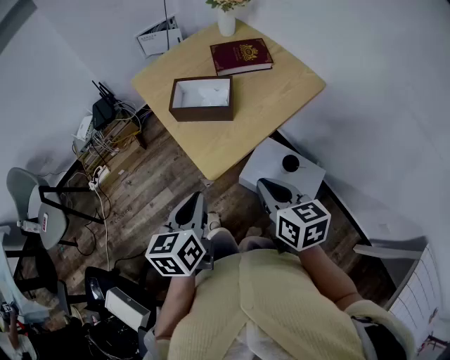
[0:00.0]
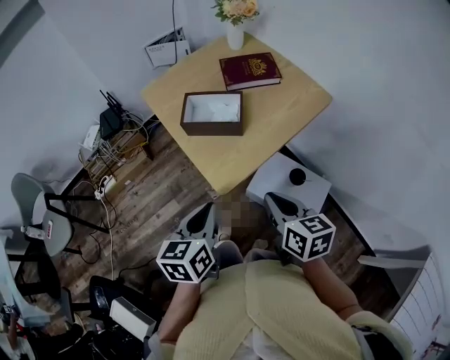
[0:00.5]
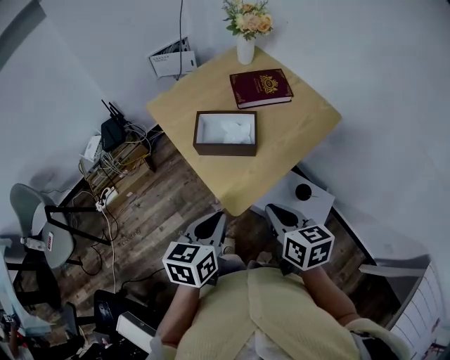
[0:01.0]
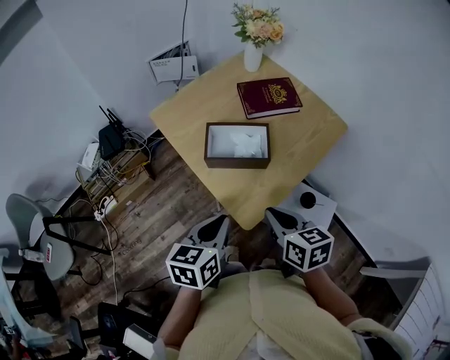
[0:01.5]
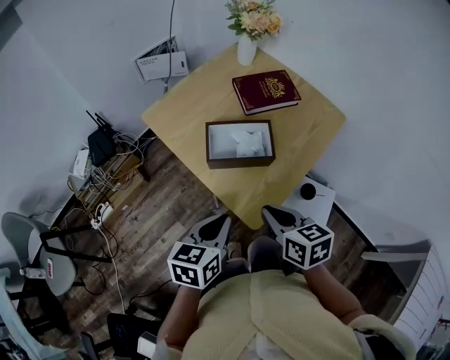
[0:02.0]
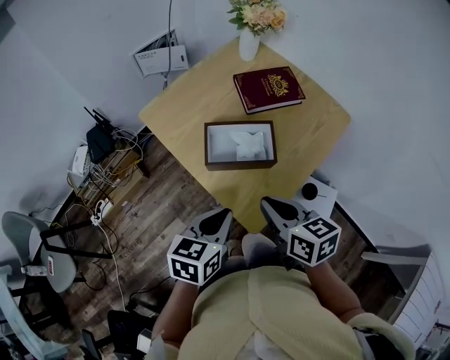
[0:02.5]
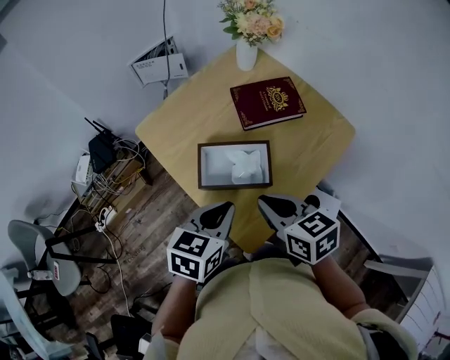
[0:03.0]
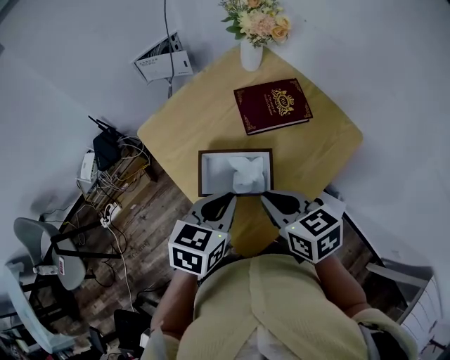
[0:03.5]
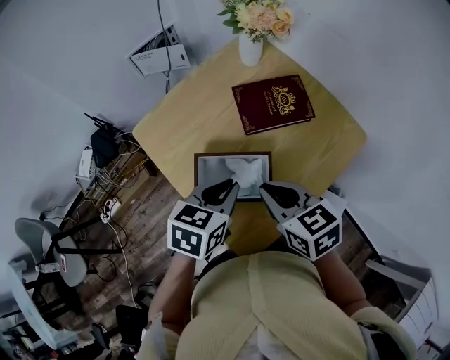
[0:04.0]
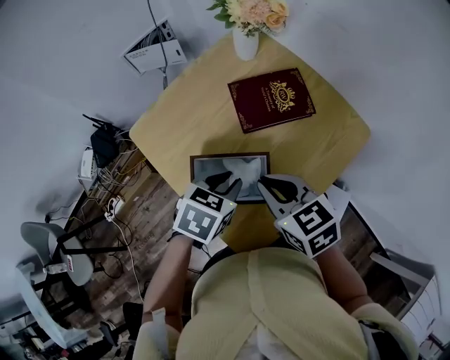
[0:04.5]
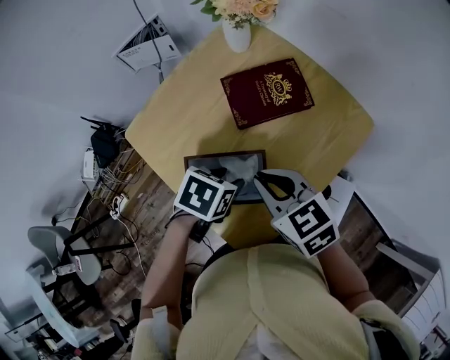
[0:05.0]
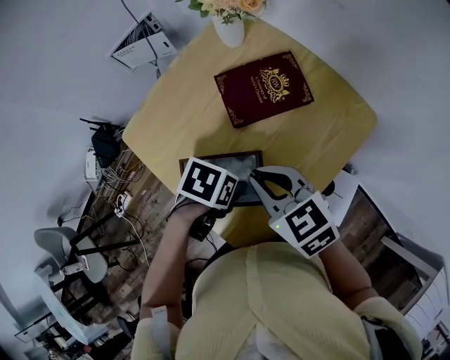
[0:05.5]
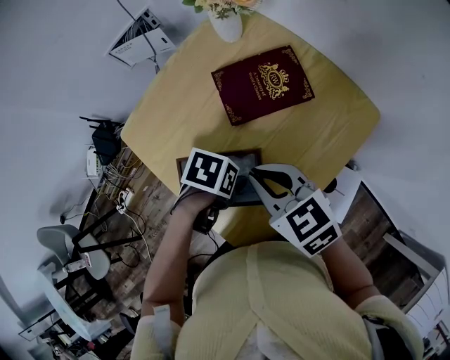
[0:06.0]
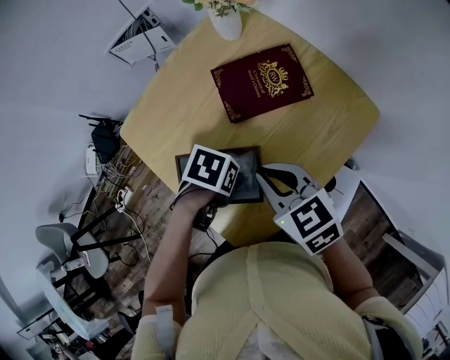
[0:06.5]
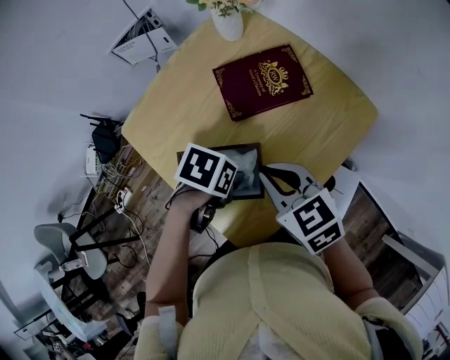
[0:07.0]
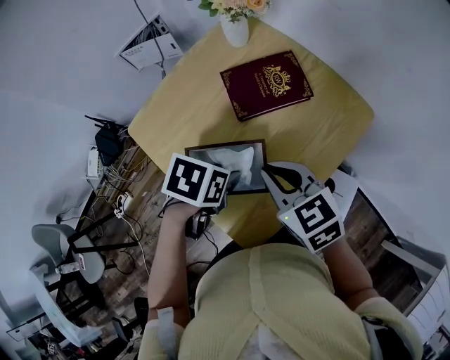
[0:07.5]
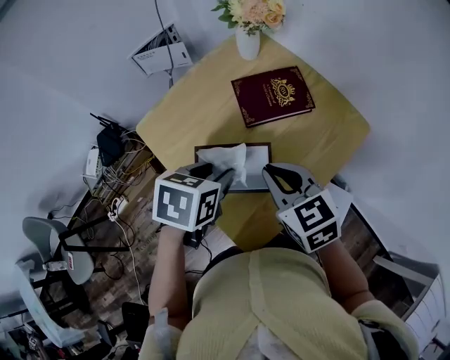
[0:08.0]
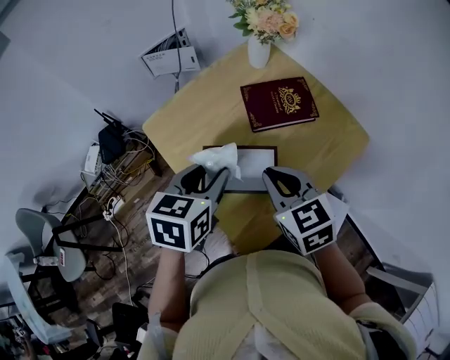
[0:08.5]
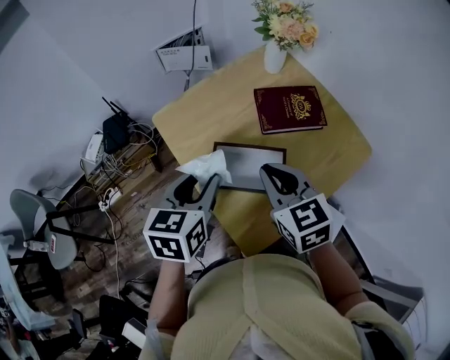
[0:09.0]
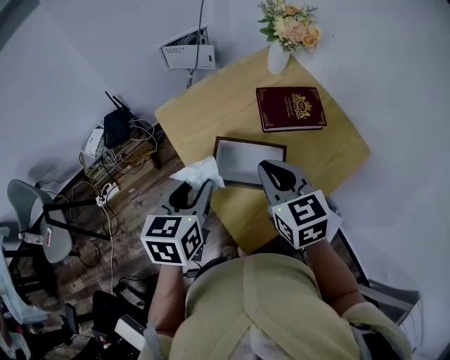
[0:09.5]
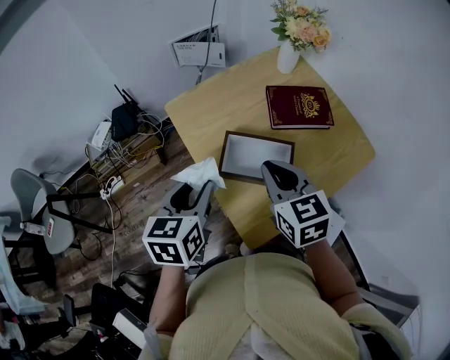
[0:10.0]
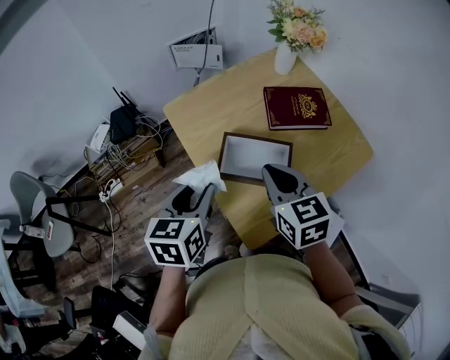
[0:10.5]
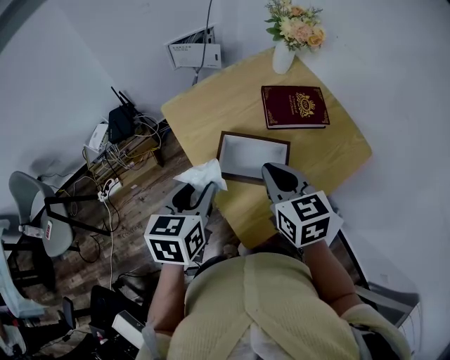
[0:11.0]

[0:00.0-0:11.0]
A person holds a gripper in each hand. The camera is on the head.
0:00.0 to 0:02.0: The right gripper shifts some 15 cm to the left and forward, while the left gripper goes roughly 15 cm forward and to the left, and turns by roughly 30 degrees.
0:02.0 to 0:03.5: The two grippers go some 15 cm forward.
0:03.5 to 0:05.5: The left gripper moves downward, some 10 cm, angles its fingers downward, by approximately 30 degrees, and opens its fingers, while the right gripper moves about 5 cm.
0:05.5 to 0:07.5: The grippers move only a little.
0:07.5 to 0:09.0: The left gripper heads to the left and upward, covering approximately 15 cm, and tilts its fingers roughly 30 degrees upward, while the right gripper moves to the left, some 5 cm.
0:09.0 to 0:11.0: The left gripper shifts by approximately 5 cm.

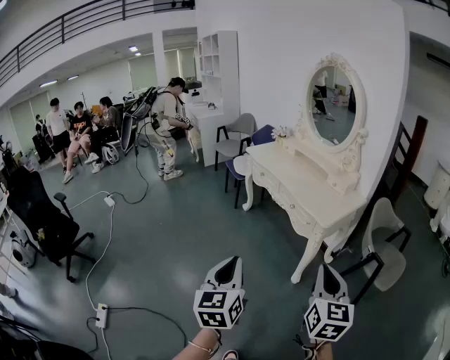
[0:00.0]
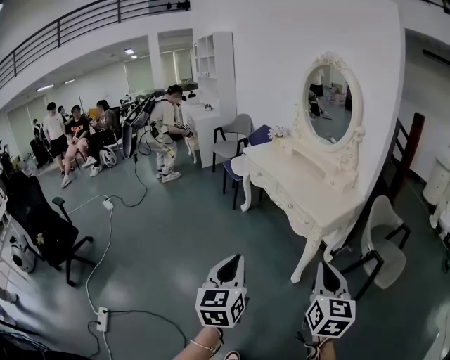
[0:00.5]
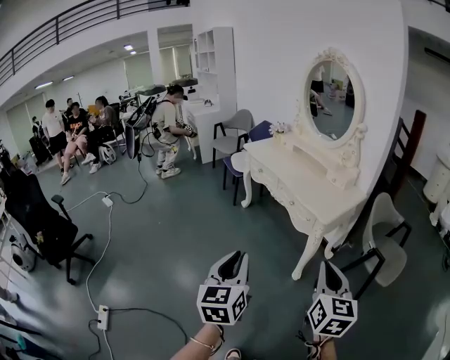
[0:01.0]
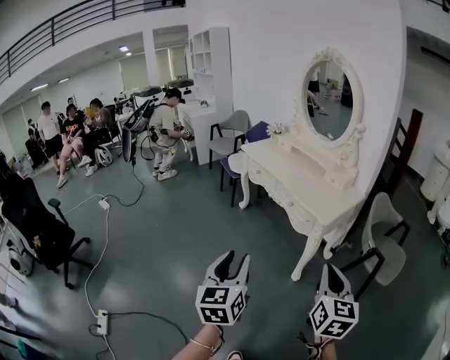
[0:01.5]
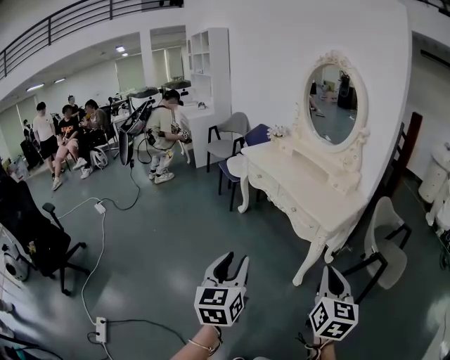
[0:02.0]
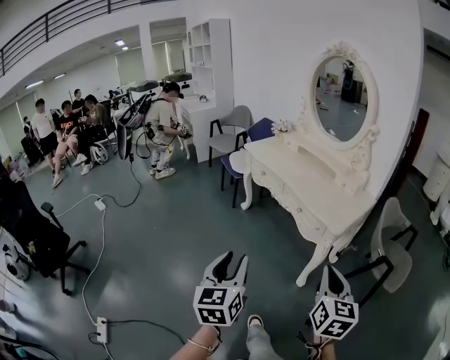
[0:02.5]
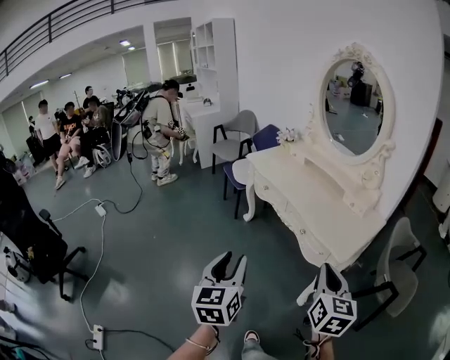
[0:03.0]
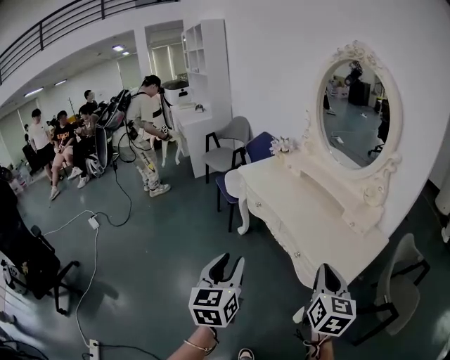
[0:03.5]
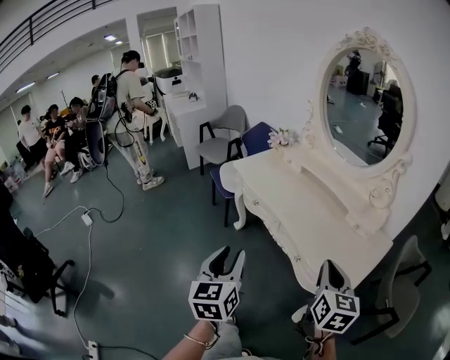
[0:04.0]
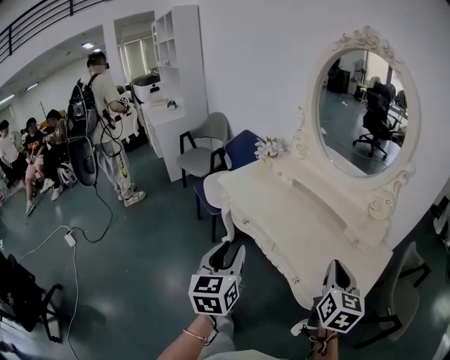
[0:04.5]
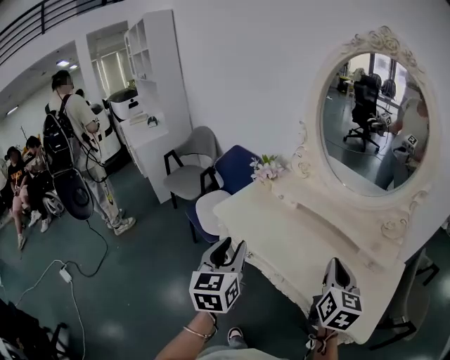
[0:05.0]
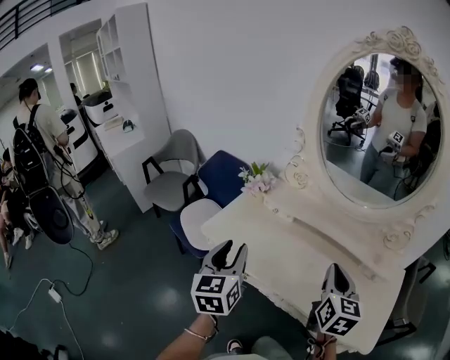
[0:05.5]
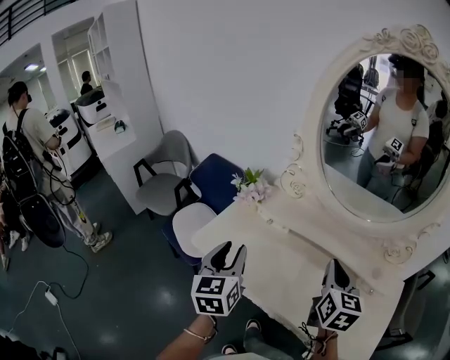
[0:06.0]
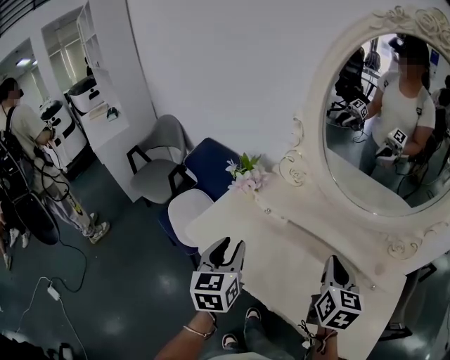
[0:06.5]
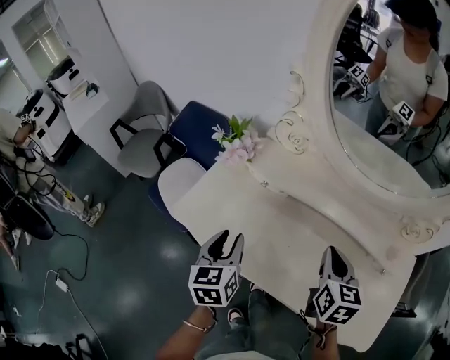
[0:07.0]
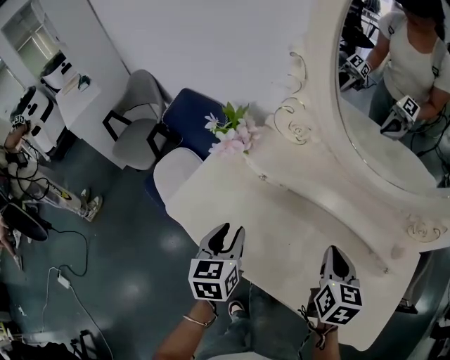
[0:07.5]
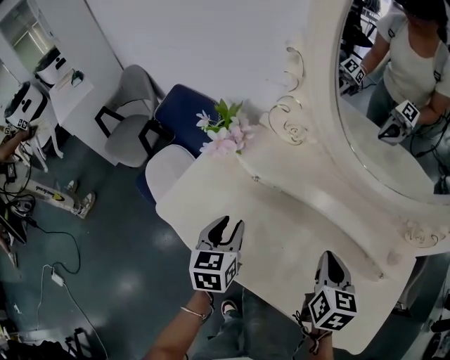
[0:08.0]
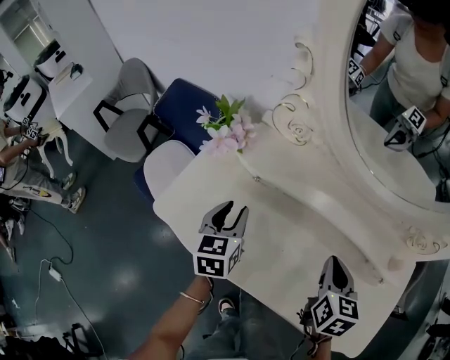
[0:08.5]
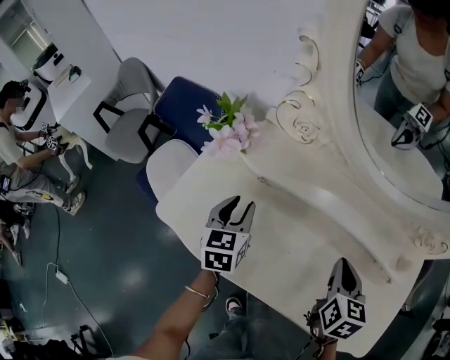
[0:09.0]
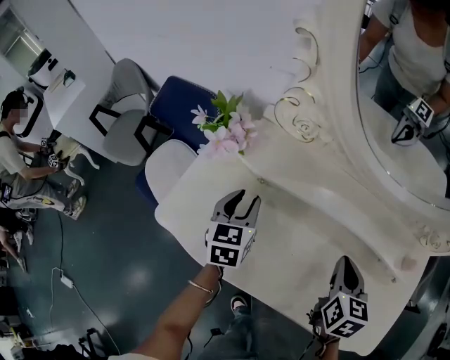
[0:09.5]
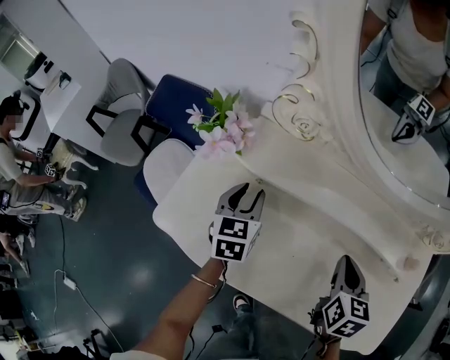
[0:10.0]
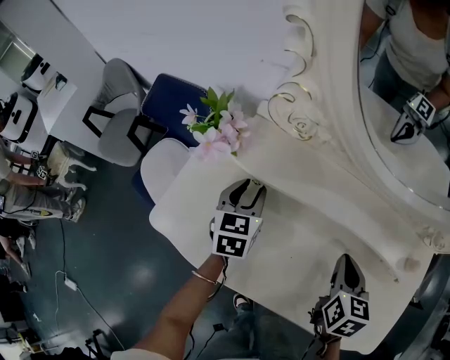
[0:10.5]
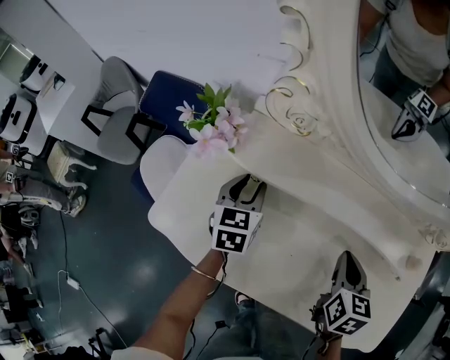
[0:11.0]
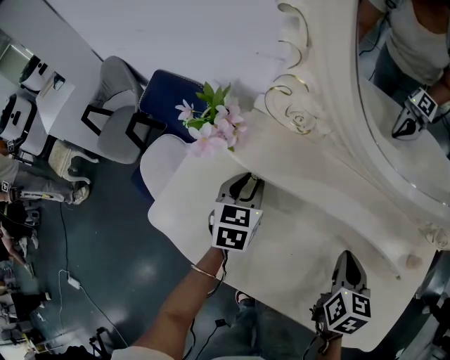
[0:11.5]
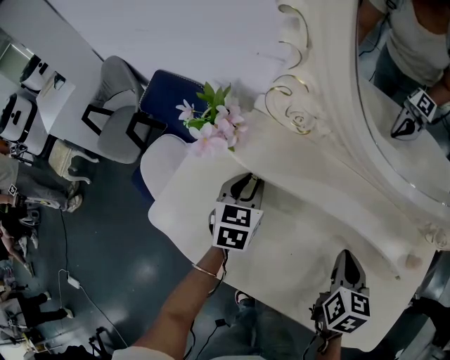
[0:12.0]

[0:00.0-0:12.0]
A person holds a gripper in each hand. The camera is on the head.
0:00.0 to 0:02.0: The right gripper shifts by about 5 cm, while the left gripper travels forward by some 5 cm, and opens its fingers.
0:02.0 to 0:04.0: The pair of grippers is taken forward, about 40 cm.
0:04.0 to 0:06.0: Both grippers are carried forward, approximately 50 cm. The right gripper rotates about 20 degrees. Meanwhile the left gripper rotates roughly 20 degrees.
0:06.0 to 0:08.0: The left gripper is displaced downward and forward by approximately 20 cm; the right gripper shifts about 15 cm downward.
0:08.0 to 0:10.0: The left gripper moves forward, some 10 cm.
0:10.0 to 0:12.0: The grippers make only small movements.

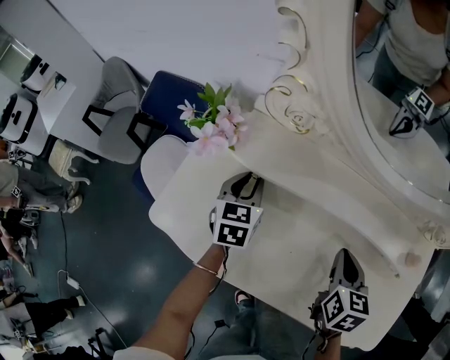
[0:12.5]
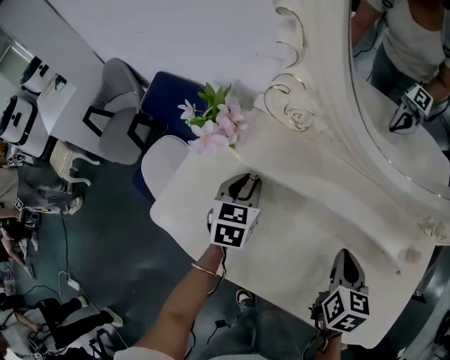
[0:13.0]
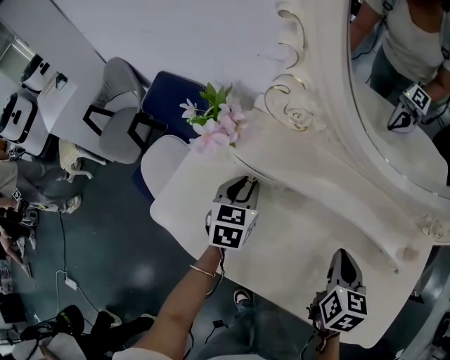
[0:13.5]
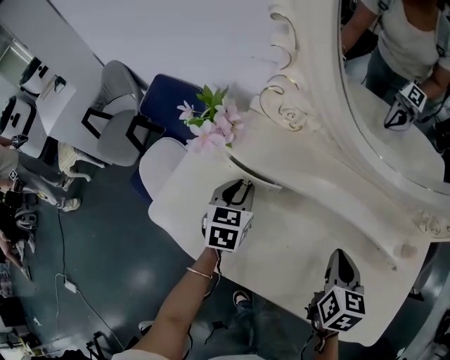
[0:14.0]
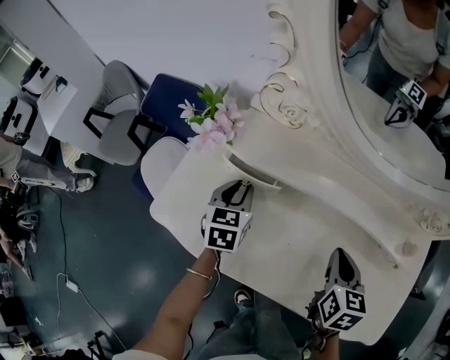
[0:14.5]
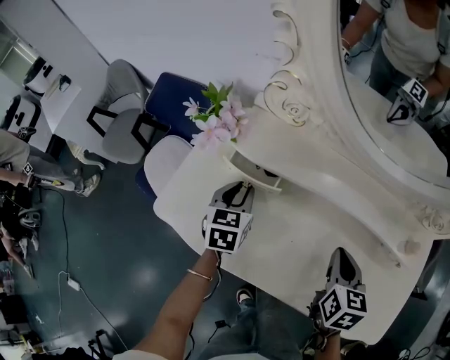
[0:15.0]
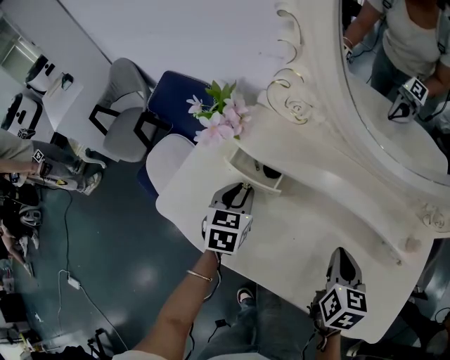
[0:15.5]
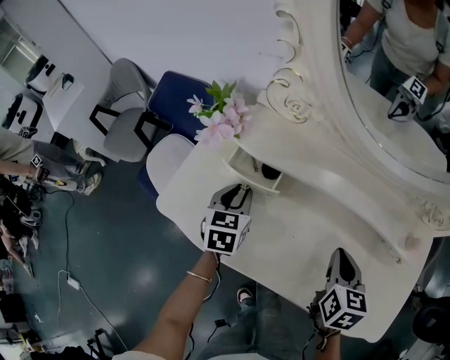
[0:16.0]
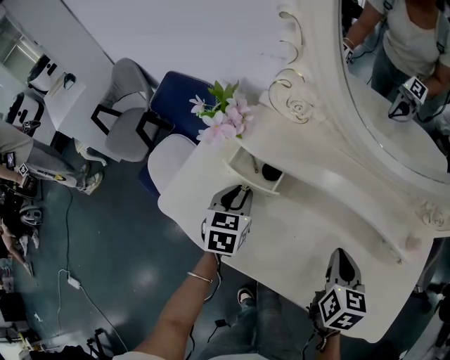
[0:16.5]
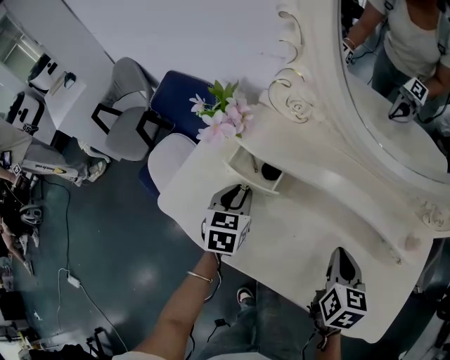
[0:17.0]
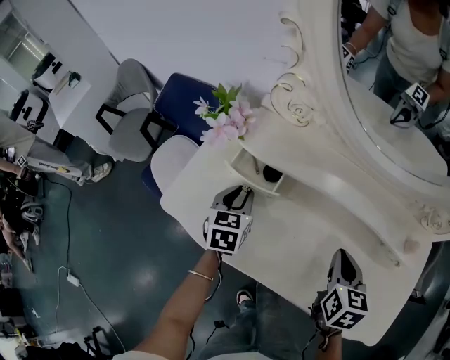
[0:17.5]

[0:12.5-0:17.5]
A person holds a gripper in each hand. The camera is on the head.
0:12.5 to 0:15.0: The left gripper heads backward, covering approximately 5 cm.
0:15.0 to 0:17.5: The grippers make only small movements.
